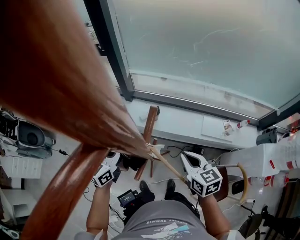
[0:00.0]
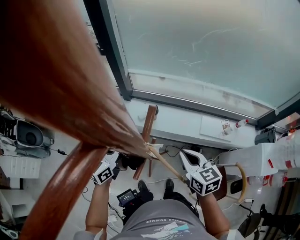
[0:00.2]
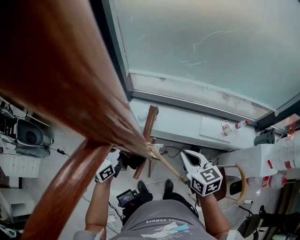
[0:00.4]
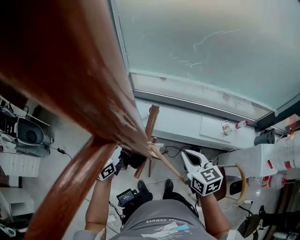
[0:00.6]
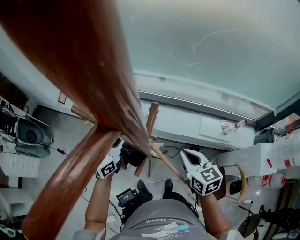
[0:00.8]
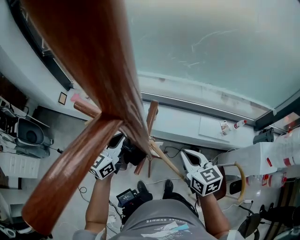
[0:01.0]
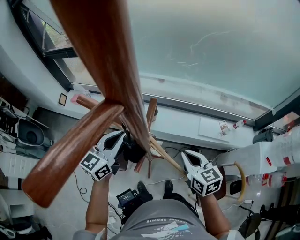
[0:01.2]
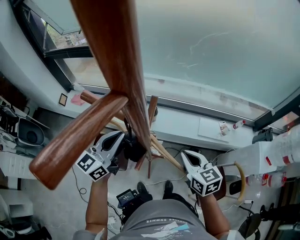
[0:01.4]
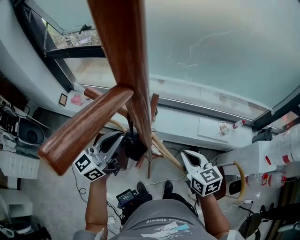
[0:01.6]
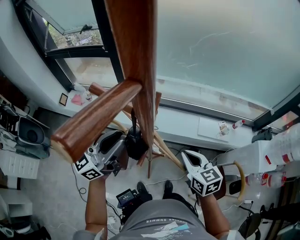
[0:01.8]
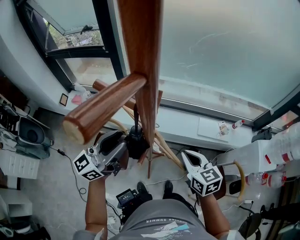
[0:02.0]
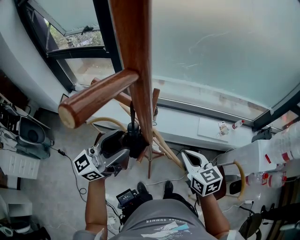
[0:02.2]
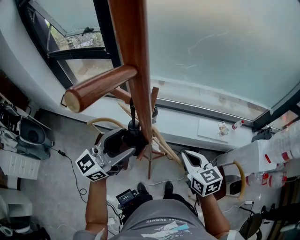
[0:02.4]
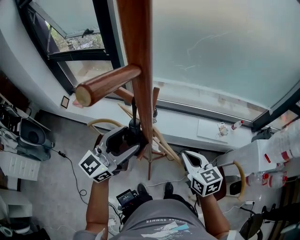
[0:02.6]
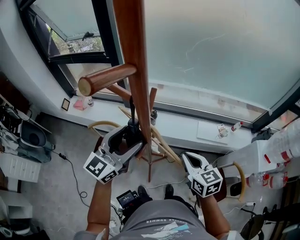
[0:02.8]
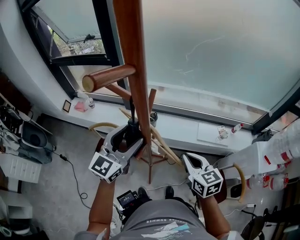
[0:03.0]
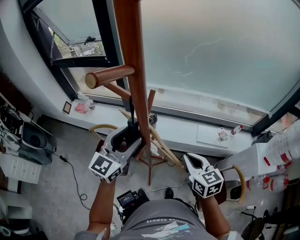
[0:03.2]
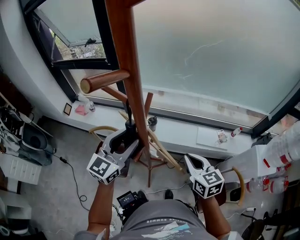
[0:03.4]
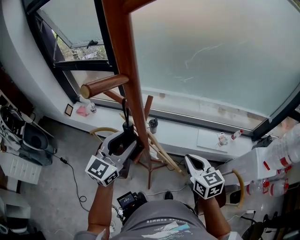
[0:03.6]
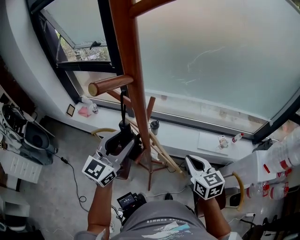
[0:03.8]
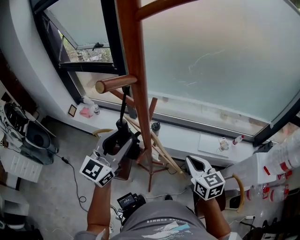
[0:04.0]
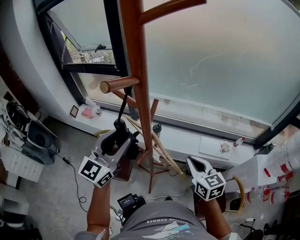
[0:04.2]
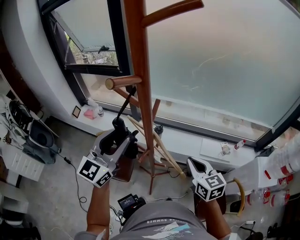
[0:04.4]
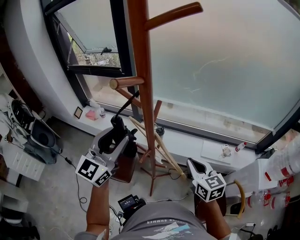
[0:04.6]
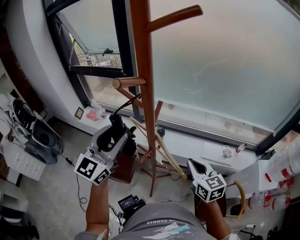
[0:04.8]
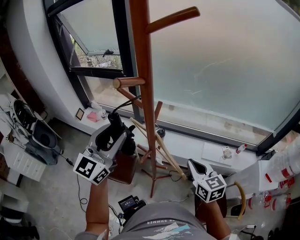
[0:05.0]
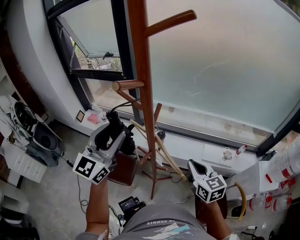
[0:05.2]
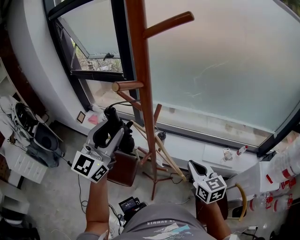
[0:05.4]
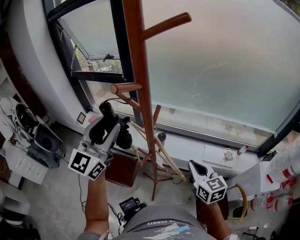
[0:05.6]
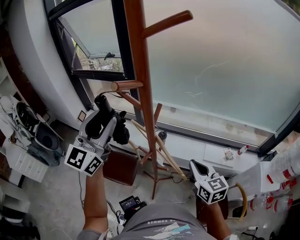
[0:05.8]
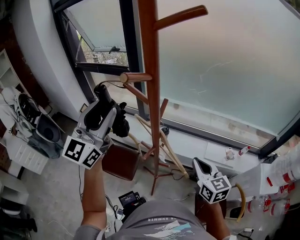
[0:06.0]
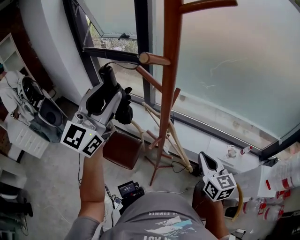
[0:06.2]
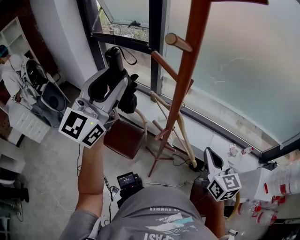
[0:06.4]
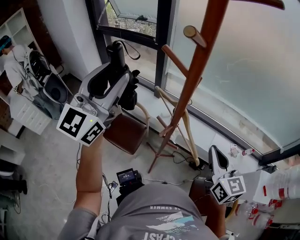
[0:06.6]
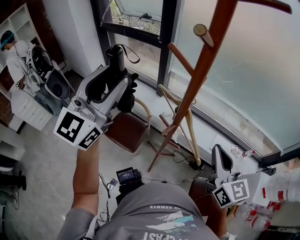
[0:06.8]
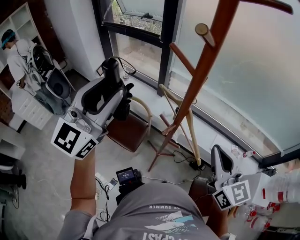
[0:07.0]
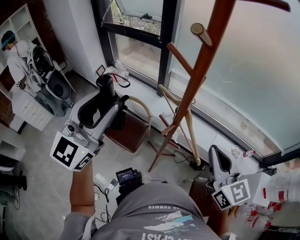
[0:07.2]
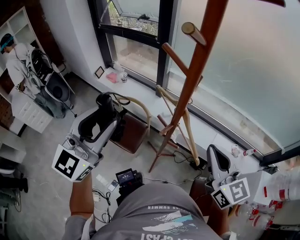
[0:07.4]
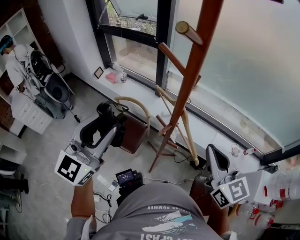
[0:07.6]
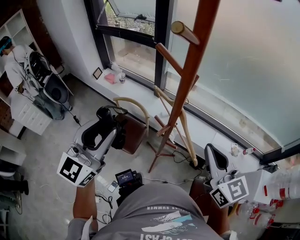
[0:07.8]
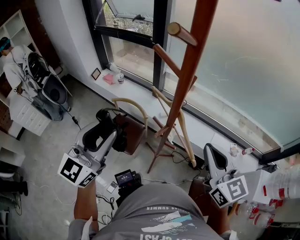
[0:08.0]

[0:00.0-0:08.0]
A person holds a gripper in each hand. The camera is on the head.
0:00.0 to 0:01.6: The right gripper changes place by about 5 cm. The left gripper is displaced upward by approximately 10 cm, and rotates approximately 30 degrees.
0:01.6 to 0:03.2: The left gripper goes approximately 5 cm to the right, changes its angle by some 30 degrees, and opens. Meanwhile the right gripper shifts by some 5 cm.
0:03.2 to 0:04.8: The left gripper is displaced upward and to the left by about 10 cm.
0:04.8 to 0:06.4: The left gripper heads upward, covering roughly 10 cm.
0:06.4 to 0:08.0: The left gripper shifts approximately 15 cm downward, backward and to the left, while the right gripper goes about 10 cm upward and to the left.

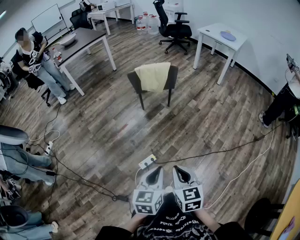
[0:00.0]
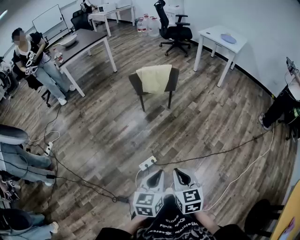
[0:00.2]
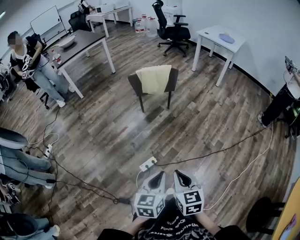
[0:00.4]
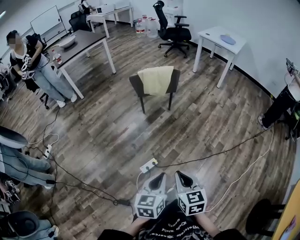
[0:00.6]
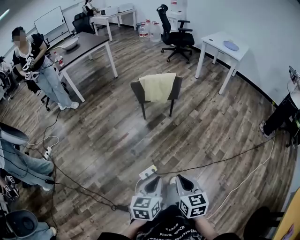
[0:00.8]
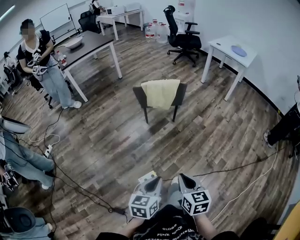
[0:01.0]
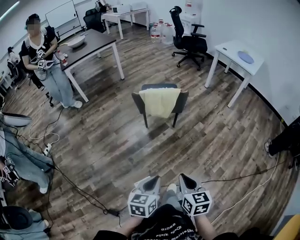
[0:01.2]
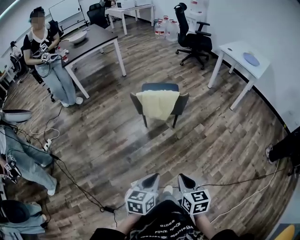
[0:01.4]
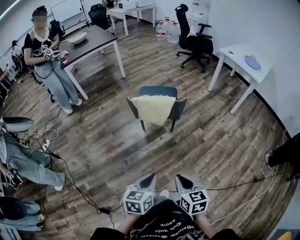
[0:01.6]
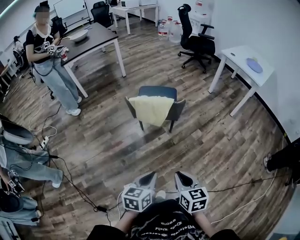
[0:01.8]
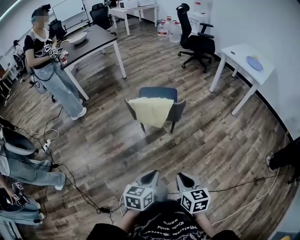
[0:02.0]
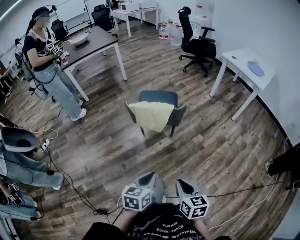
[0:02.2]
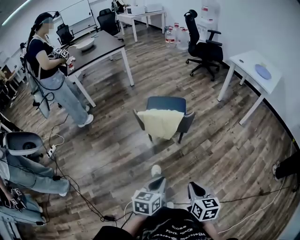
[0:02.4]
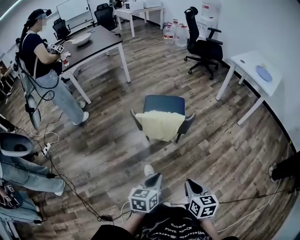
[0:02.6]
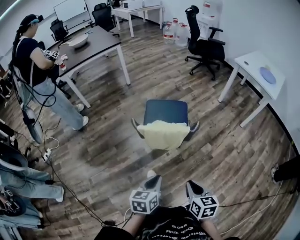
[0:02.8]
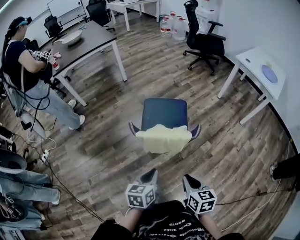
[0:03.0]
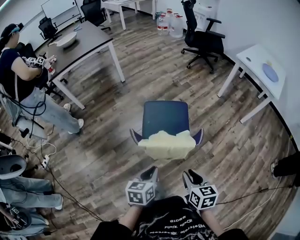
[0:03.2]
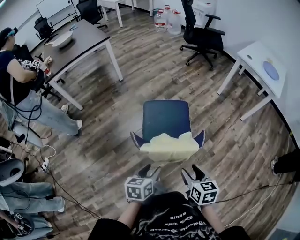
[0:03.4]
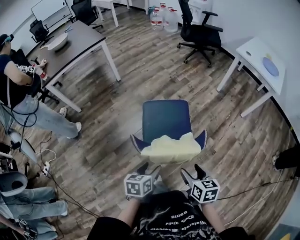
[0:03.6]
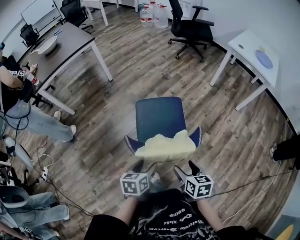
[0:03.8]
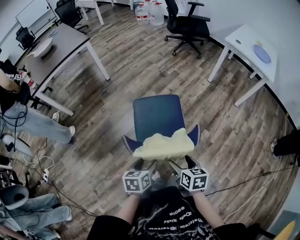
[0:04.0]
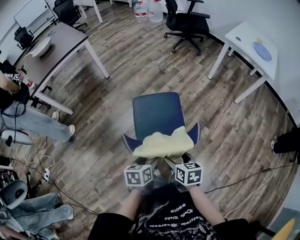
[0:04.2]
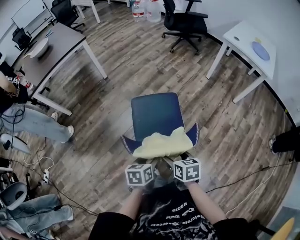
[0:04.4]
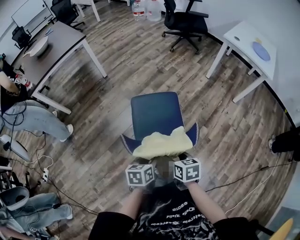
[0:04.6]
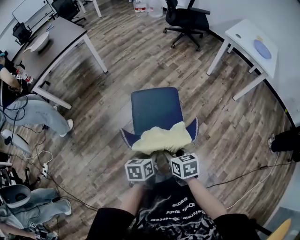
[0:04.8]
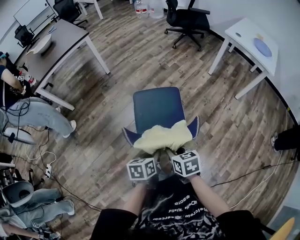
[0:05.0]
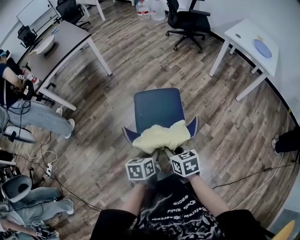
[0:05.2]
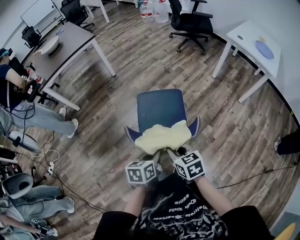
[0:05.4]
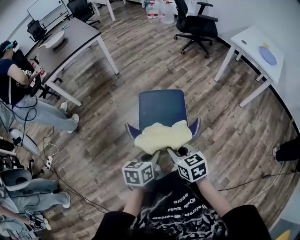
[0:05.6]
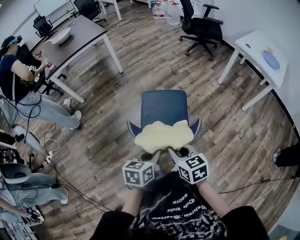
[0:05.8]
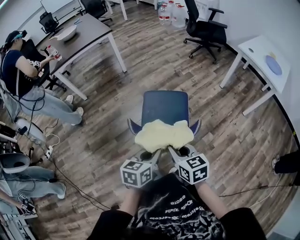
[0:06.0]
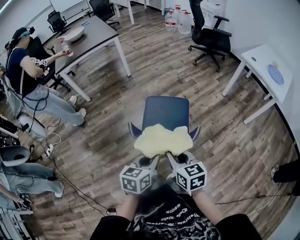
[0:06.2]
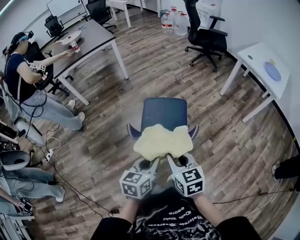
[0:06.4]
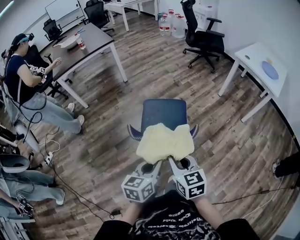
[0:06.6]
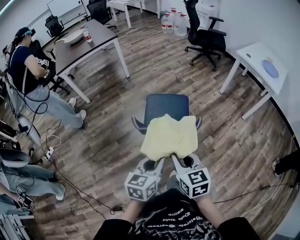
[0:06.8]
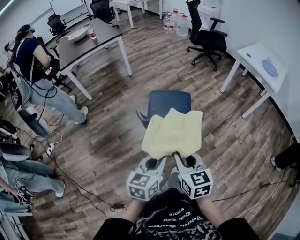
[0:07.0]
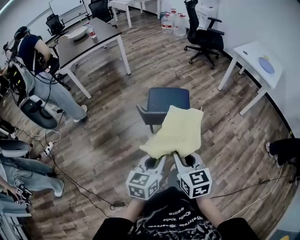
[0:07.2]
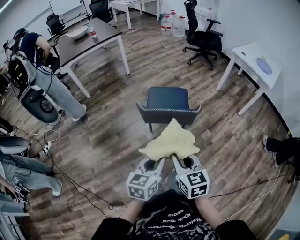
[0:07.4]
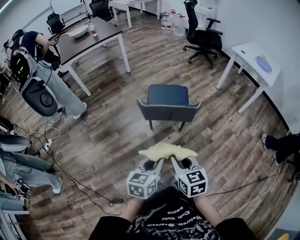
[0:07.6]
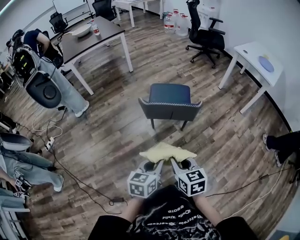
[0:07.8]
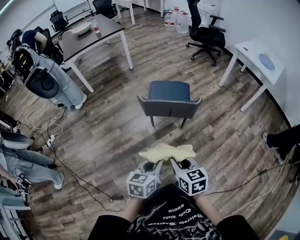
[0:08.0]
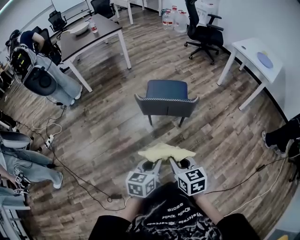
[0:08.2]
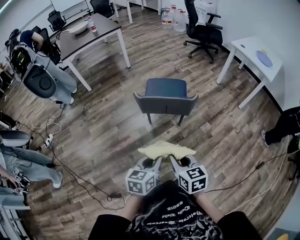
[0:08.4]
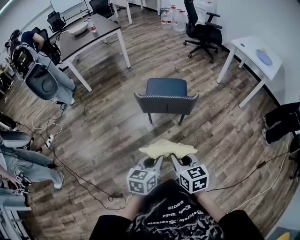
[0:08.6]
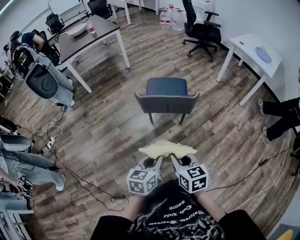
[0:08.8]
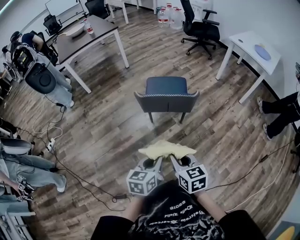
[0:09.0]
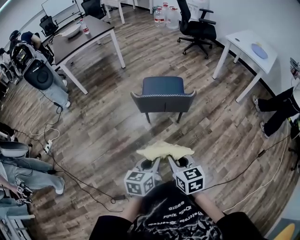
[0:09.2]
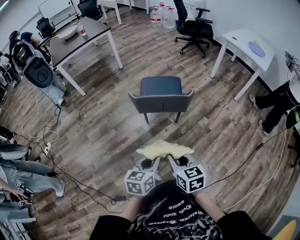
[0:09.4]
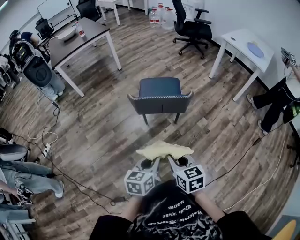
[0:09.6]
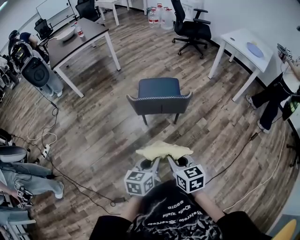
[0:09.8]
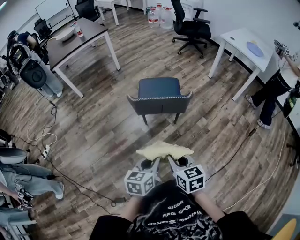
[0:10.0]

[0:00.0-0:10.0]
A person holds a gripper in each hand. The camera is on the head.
0:00.0 to 0:01.4: Both grippers move forward, approximately 20 cm.
0:01.4 to 0:02.8: Both grippers travel together forward, about 20 cm.
0:02.8 to 0:04.2: The right gripper goes approximately 25 cm forward and to the left, and opens up, while the left gripper heads forward, covering roughly 20 cm, and opens its fingers.
0:04.2 to 0:05.8: Both grippers travel together upward, about 10 cm. The right gripper turns by about 30 degrees, and closes its fingers; the left gripper closes its fingers.
0:05.8 to 0:07.2: The grippers both shift backward and upward by roughly 15 cm.
0:07.2 to 0:08.6: Both grippers travel together backward and downward, some 10 cm.
0:08.6 to 0:10.0: The grippers stay close to where they were, moving slightly.

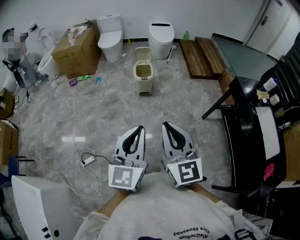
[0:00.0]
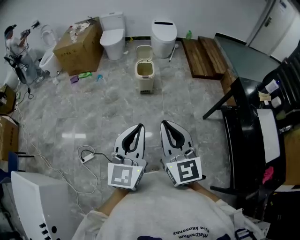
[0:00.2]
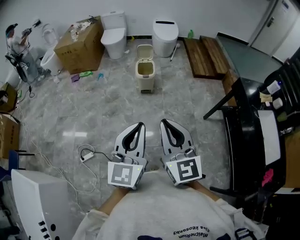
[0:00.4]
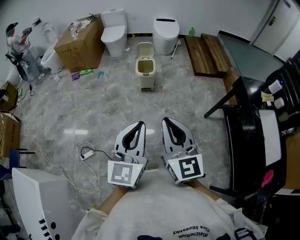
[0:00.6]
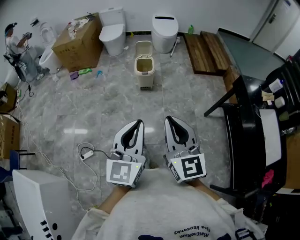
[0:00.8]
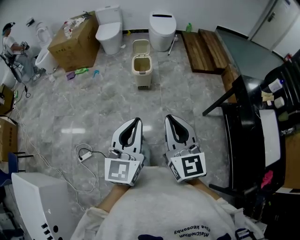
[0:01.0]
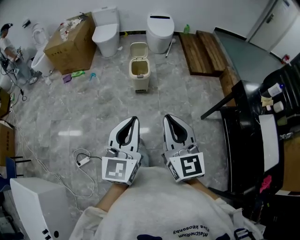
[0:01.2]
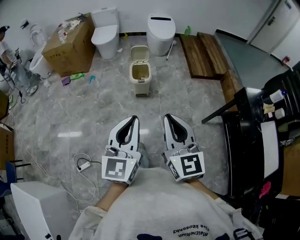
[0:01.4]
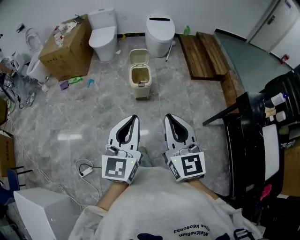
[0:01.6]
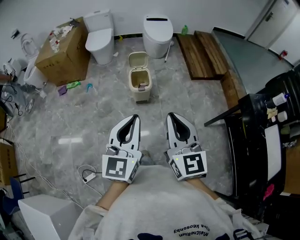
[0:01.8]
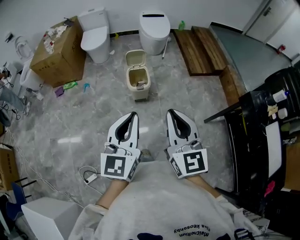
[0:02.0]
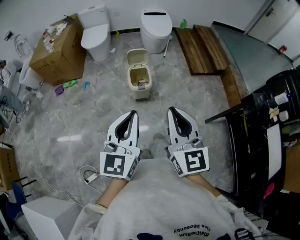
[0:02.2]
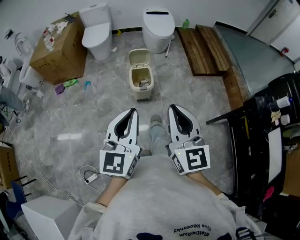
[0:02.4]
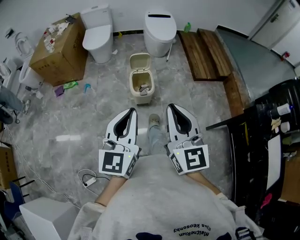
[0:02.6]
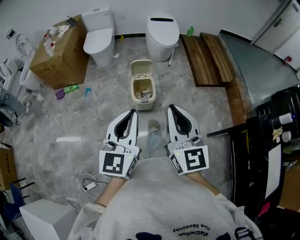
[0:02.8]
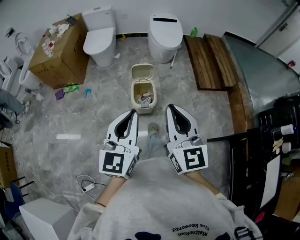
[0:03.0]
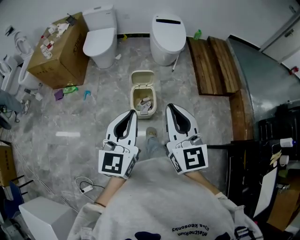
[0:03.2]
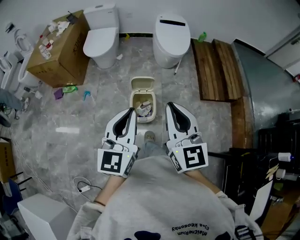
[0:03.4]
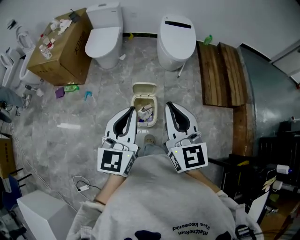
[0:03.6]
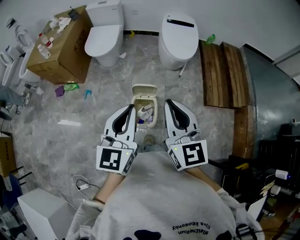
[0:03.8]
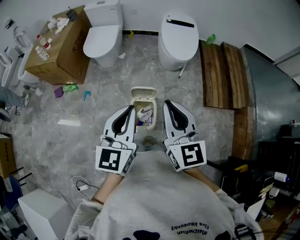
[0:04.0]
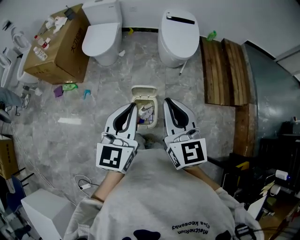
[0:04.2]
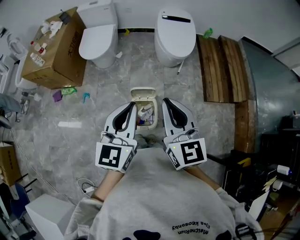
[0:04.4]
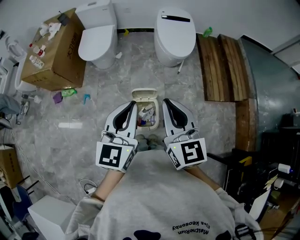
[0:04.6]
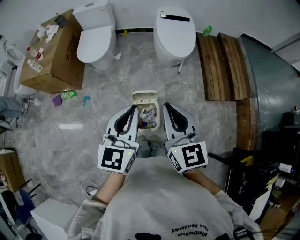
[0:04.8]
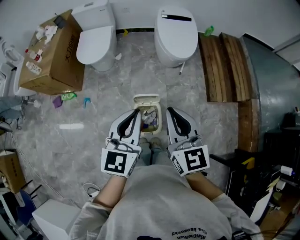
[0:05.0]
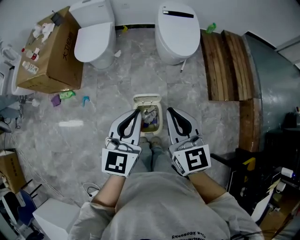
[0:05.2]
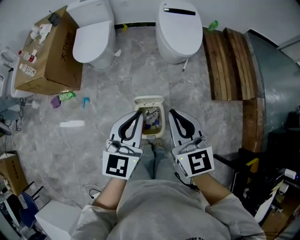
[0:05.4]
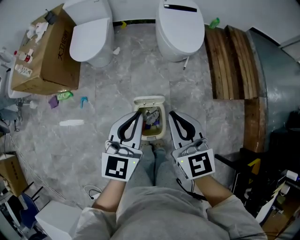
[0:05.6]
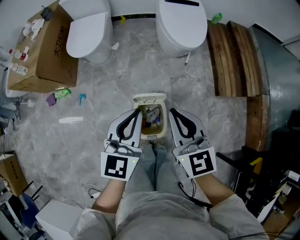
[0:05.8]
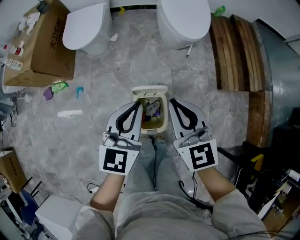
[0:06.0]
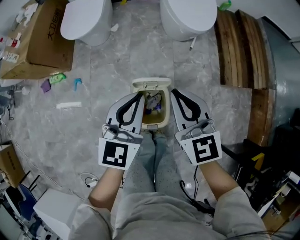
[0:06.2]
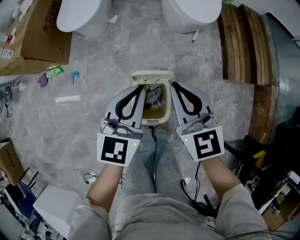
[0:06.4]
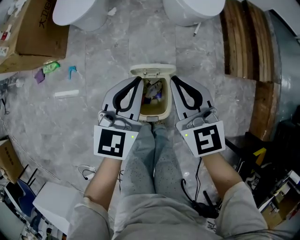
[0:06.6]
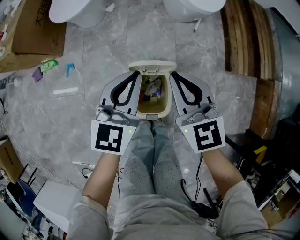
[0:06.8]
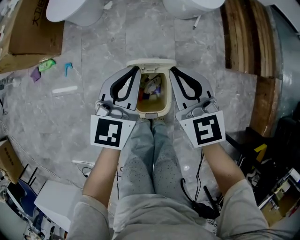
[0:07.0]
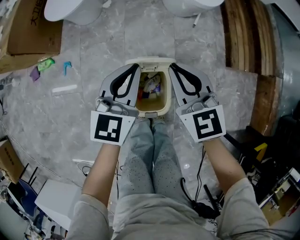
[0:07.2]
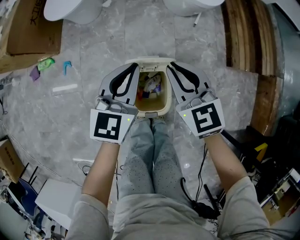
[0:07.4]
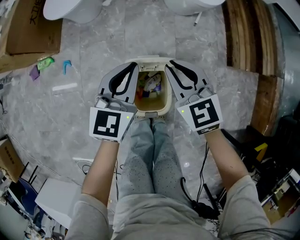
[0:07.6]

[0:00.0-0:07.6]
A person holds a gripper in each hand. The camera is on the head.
0:00.0 to 0:01.6: The two grippers go roughly 30 cm forward.
0:01.6 to 0:03.0: Both grippers move forward, roughly 35 cm.
0:03.0 to 0:04.6: Both grippers travel together forward, approximately 40 cm.
0:04.6 to 0:06.0: Both grippers travel together downward and forward, some 25 cm.
0:06.0 to 0:07.6: Both grippers move downward, some 20 cm. The right gripper swivels some 20 degrees.
